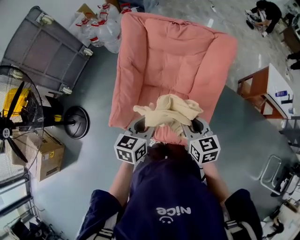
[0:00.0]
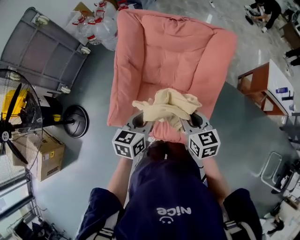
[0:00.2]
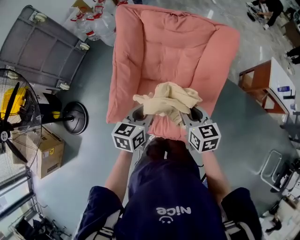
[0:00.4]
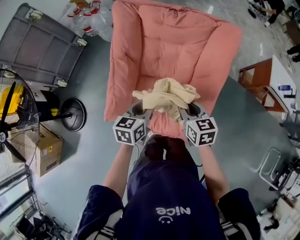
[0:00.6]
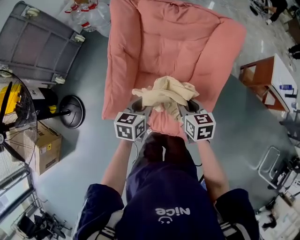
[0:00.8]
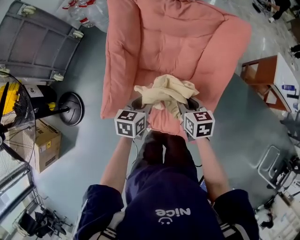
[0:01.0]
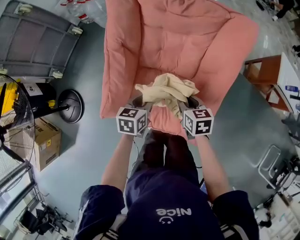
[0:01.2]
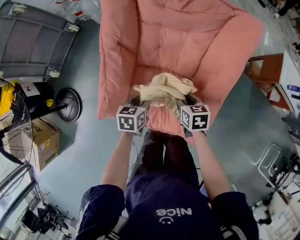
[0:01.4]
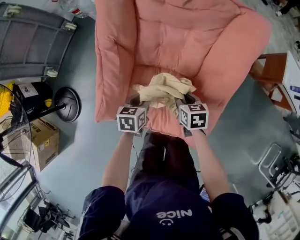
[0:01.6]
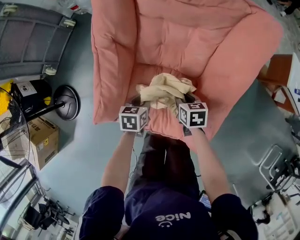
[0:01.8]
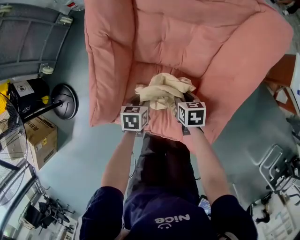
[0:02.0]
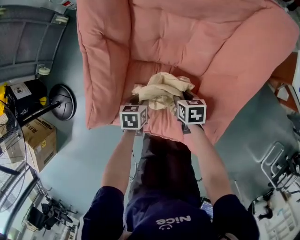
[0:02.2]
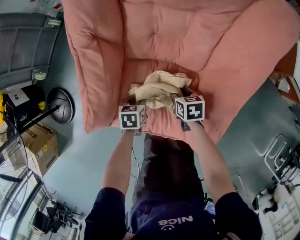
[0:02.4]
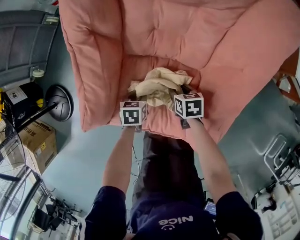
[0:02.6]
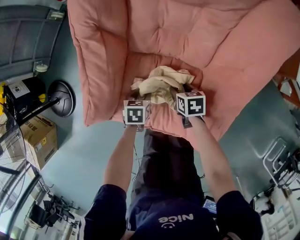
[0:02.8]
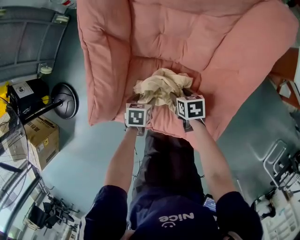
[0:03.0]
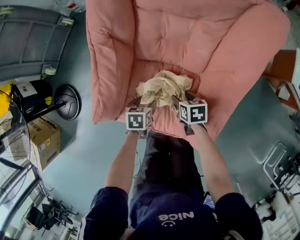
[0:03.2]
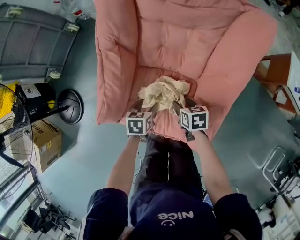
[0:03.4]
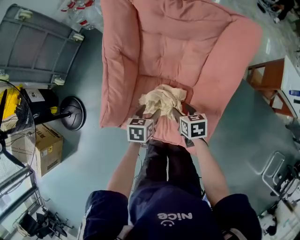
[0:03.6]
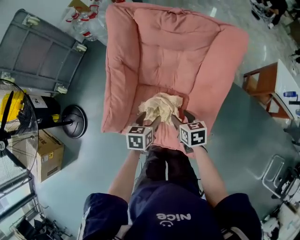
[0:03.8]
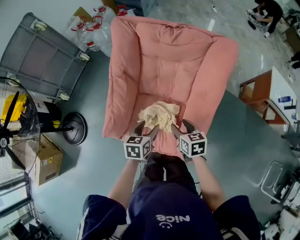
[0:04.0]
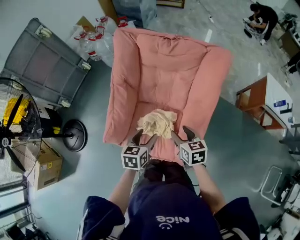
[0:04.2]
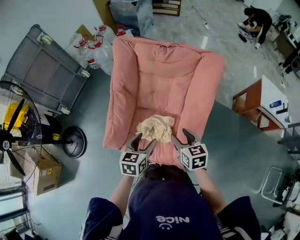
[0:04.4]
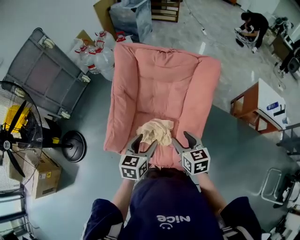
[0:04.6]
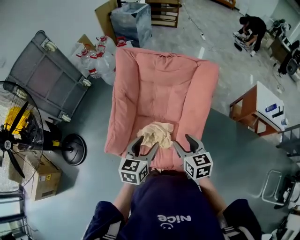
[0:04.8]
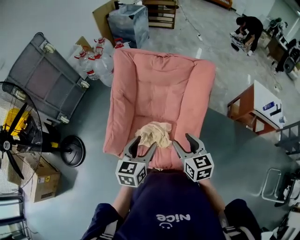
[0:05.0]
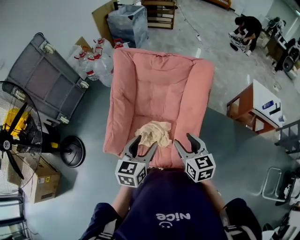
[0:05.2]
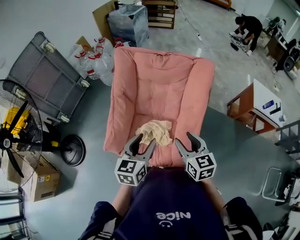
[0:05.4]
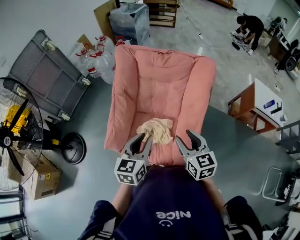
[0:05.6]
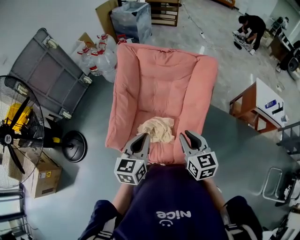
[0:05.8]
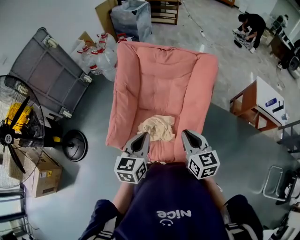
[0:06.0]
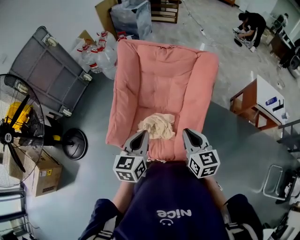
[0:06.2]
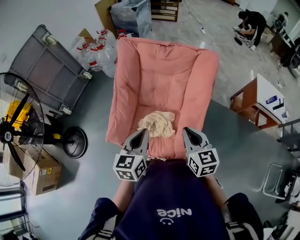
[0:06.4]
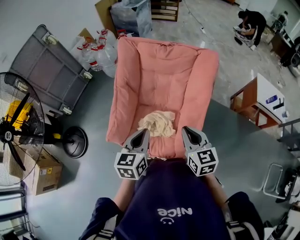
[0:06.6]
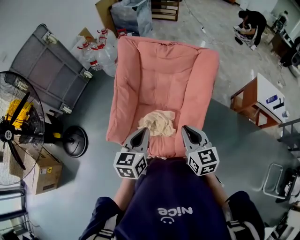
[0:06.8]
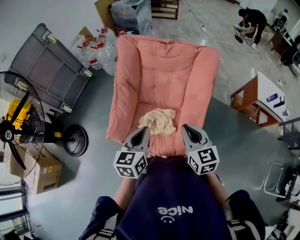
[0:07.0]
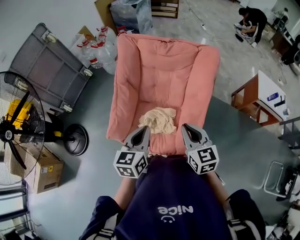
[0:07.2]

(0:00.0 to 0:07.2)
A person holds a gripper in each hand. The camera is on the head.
0:00.0 - 0:01.4: Both grippers move downward and forward, about 30 cm. The right gripper turns by roughly 20 degrees; the left gripper changes its angle by approximately 20 degrees.
0:01.4 - 0:02.8: Both grippers travel together downward, about 25 cm. The right gripper opens.
0:02.8 - 0:04.4: Both grippers travel together upward, some 40 cm. The right gripper turns by about 30 degrees. The left gripper points its fingers approximately 30 degrees further upward, and opens its fingers.
0:04.4 - 0:05.8: The grippers both shift upward and backward by about 15 cm. The right gripper closes up. The left gripper closes its fingers.
0:05.8 - 0:07.2: The grippers move only a little.

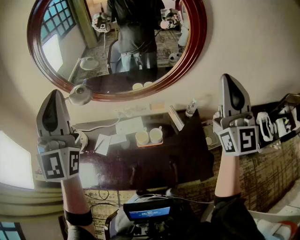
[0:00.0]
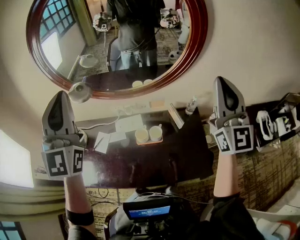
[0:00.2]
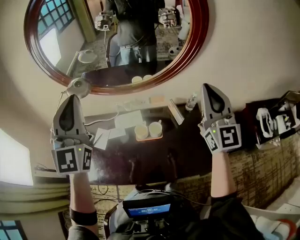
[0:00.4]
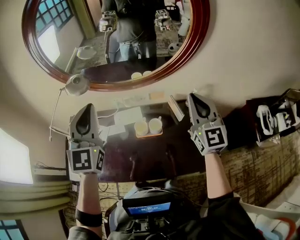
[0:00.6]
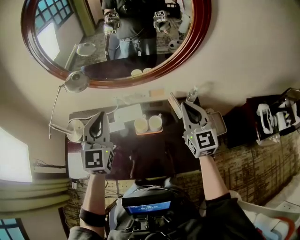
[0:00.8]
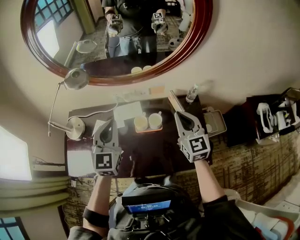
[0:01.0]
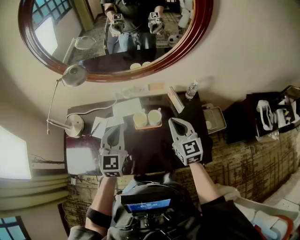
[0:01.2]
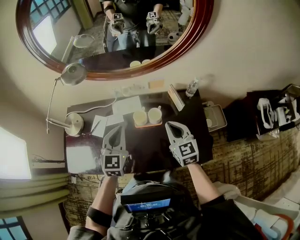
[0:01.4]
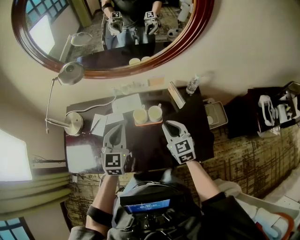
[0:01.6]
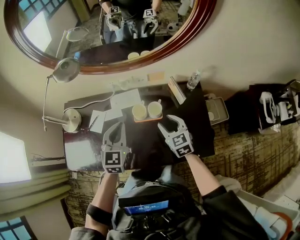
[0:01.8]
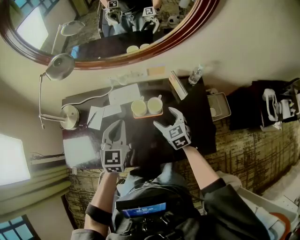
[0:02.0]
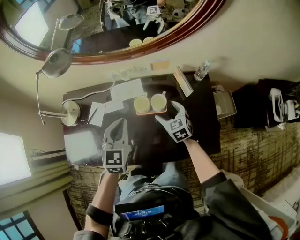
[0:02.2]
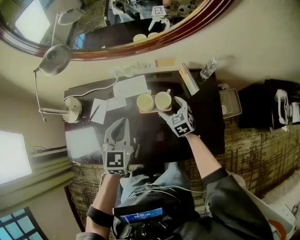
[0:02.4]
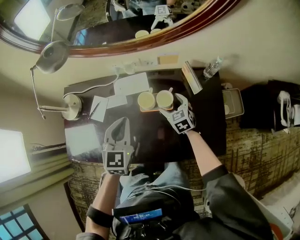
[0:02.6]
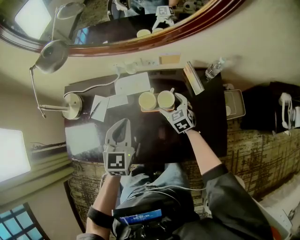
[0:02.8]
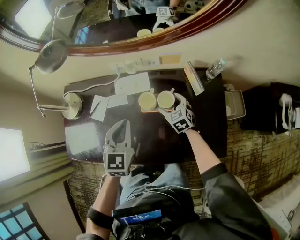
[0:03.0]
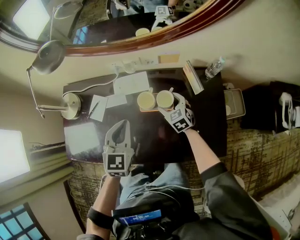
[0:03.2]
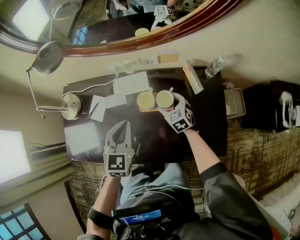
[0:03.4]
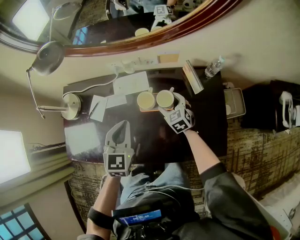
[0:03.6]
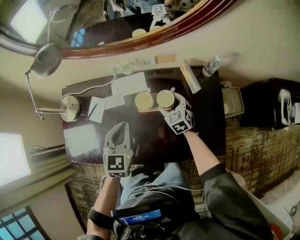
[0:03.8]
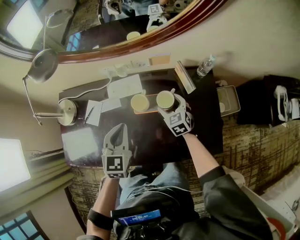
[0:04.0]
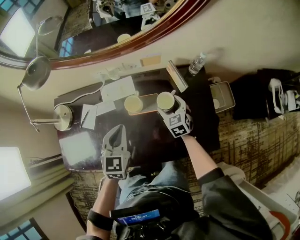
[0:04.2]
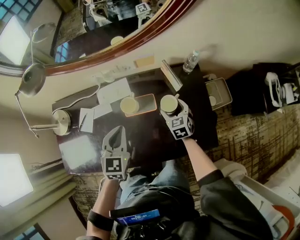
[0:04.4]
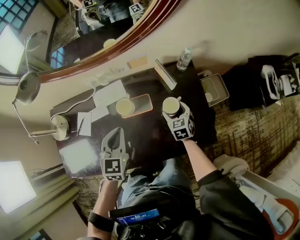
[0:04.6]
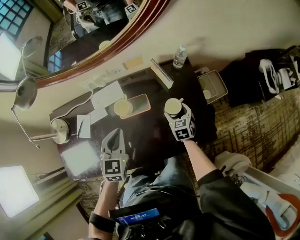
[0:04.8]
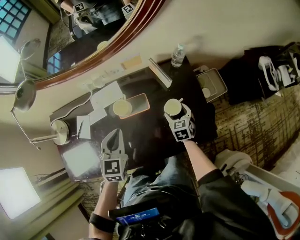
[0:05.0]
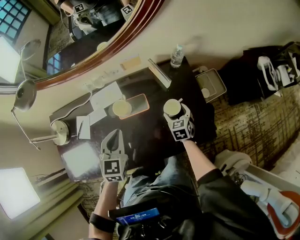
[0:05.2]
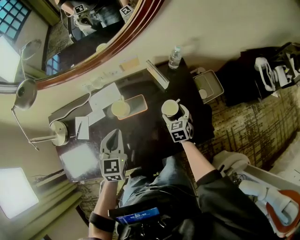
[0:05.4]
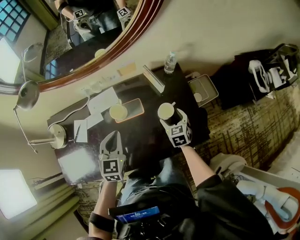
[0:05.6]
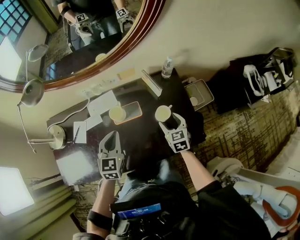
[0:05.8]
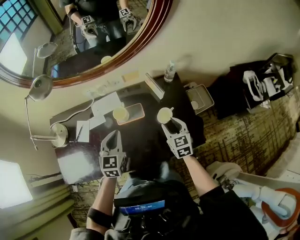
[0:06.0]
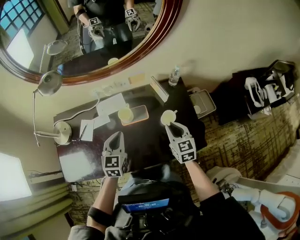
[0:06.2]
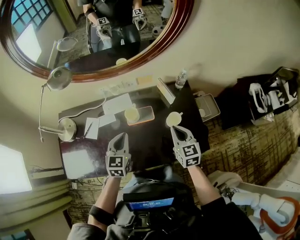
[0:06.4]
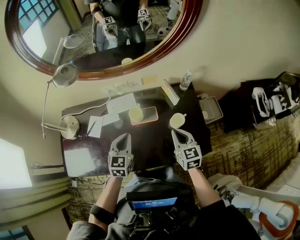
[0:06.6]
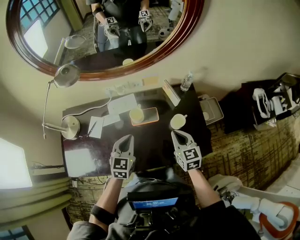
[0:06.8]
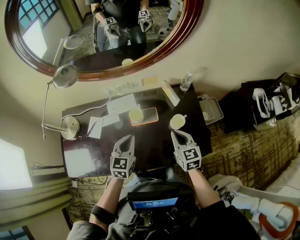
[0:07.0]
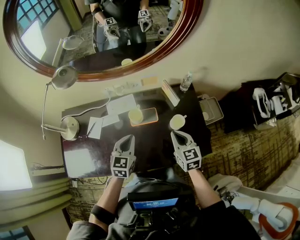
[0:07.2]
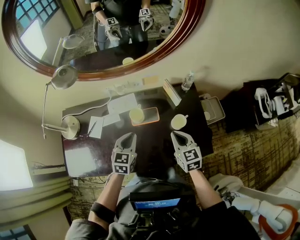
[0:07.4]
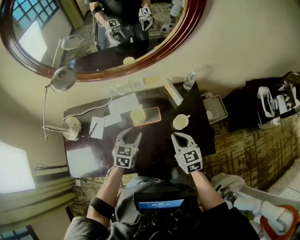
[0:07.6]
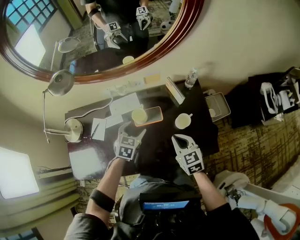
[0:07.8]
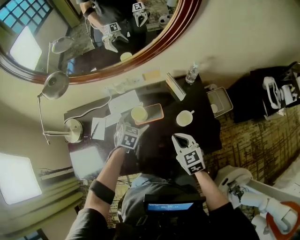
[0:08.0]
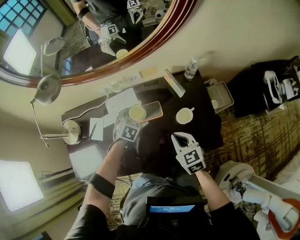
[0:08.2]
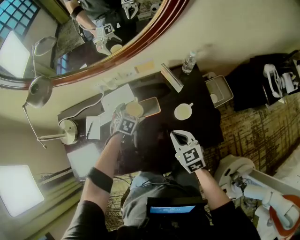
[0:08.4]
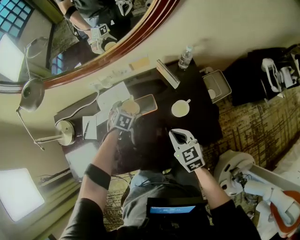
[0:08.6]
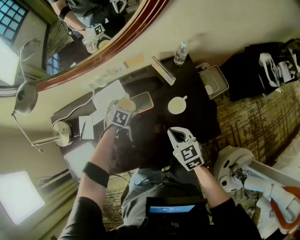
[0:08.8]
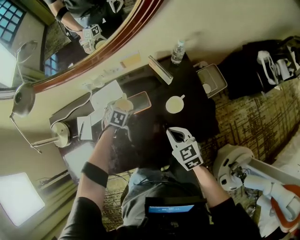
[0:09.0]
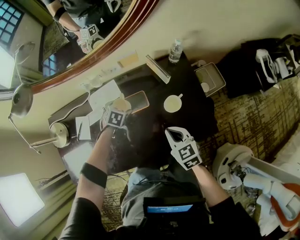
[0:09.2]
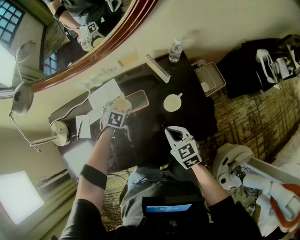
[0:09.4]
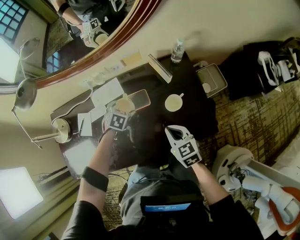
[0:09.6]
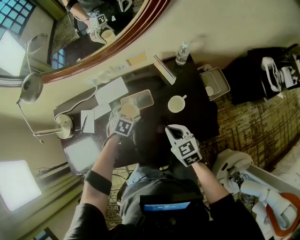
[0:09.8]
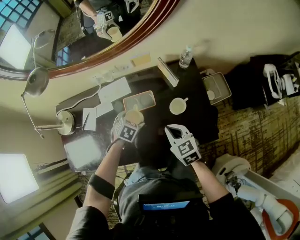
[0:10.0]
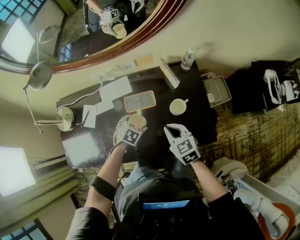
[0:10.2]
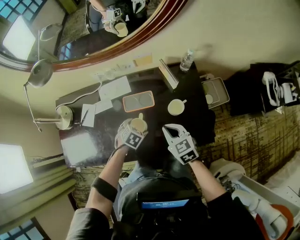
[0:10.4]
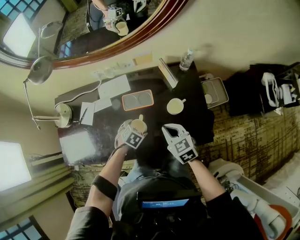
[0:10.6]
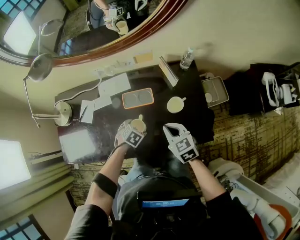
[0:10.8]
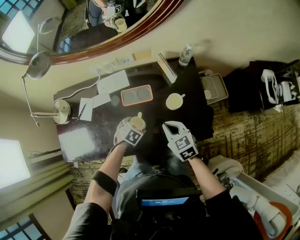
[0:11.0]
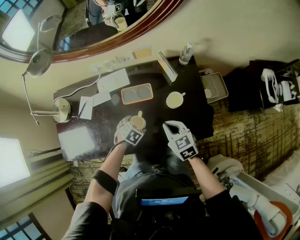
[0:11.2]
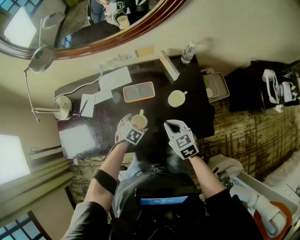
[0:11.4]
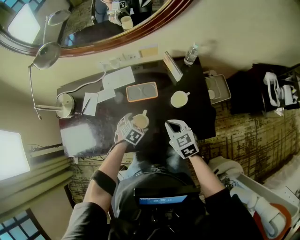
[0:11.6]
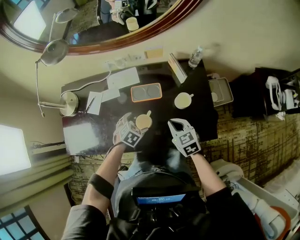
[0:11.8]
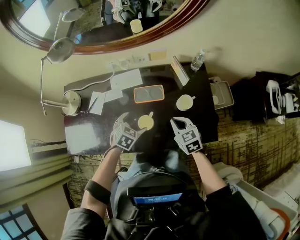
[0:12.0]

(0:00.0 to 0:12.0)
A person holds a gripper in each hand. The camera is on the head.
0:00.0 - 0:01.6: The two grippers go roughly 40 cm downward. The right gripper angles its fingers downward, by some 50 degrees, while the left gripper tilts its fingers about 40 degrees downward.
0:01.6 - 0:03.0: The left gripper is displaced downward by roughly 5 cm, while the right gripper heads downward and forward, covering about 25 cm, and opens its fingers.
0:03.0 - 0:04.4: The right gripper moves to the right and backward, approximately 10 cm, and changes its angle by approximately 20 degrees.
0:04.4 - 0:06.0: The right gripper goes roughly 15 cm upward and backward, and closes its fingers.
0:06.0 - 0:07.6: The right gripper moves to the left, approximately 5 cm, and closes its fingers. The left gripper moves downward, some 5 cm.
0:07.6 - 0:09.0: The left gripper moves downward and forward, roughly 20 cm, tips its fingers downward by approximately 30 degrees, and opens up; the right gripper shifts some 10 cm downward.
0:09.0 - 0:10.4: The left gripper goes some 15 cm backward.
0:10.4 - 0:12.0: The left gripper travels upward by about 5 cm.

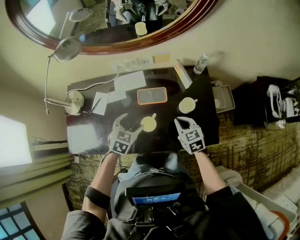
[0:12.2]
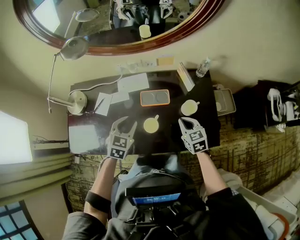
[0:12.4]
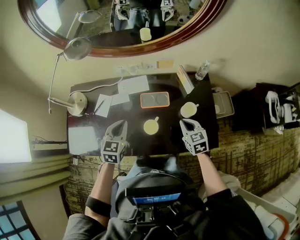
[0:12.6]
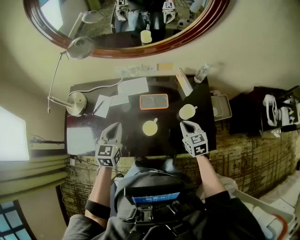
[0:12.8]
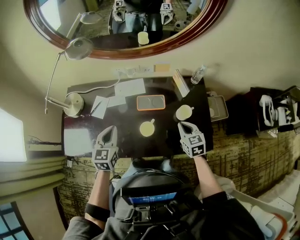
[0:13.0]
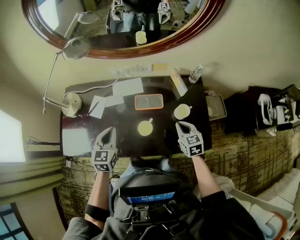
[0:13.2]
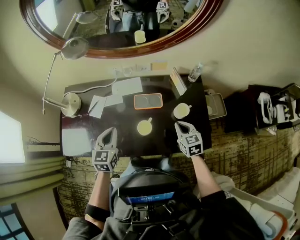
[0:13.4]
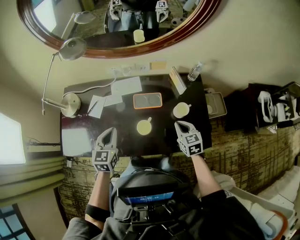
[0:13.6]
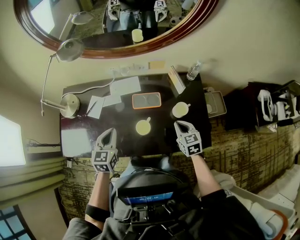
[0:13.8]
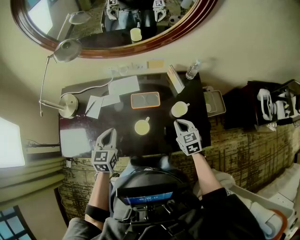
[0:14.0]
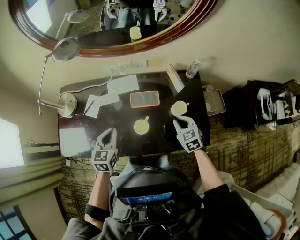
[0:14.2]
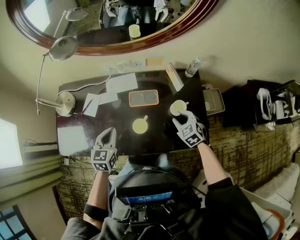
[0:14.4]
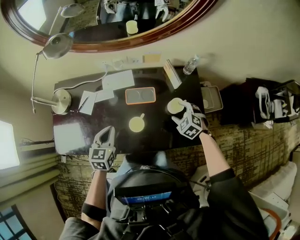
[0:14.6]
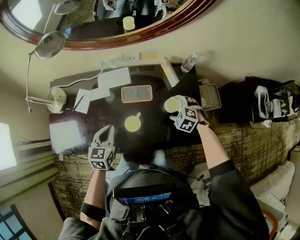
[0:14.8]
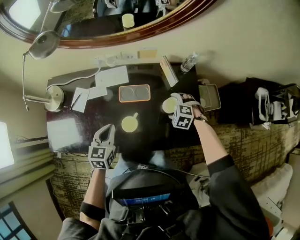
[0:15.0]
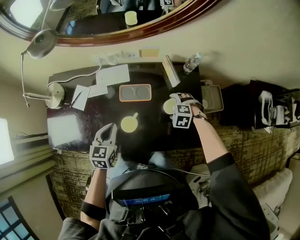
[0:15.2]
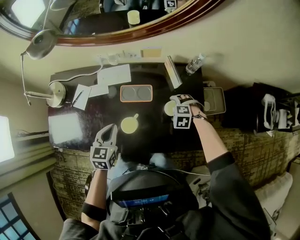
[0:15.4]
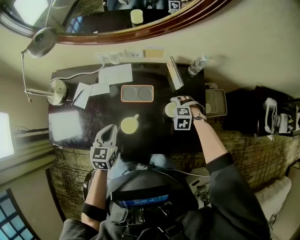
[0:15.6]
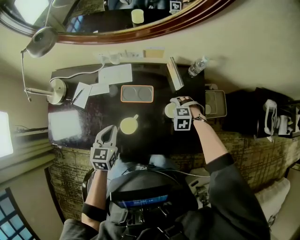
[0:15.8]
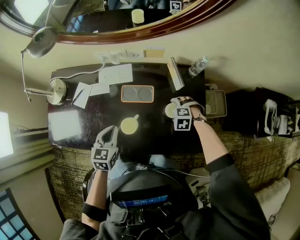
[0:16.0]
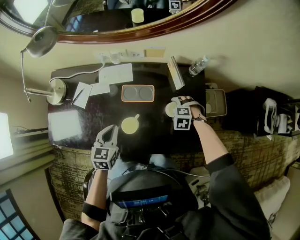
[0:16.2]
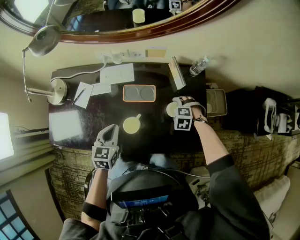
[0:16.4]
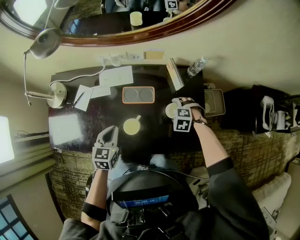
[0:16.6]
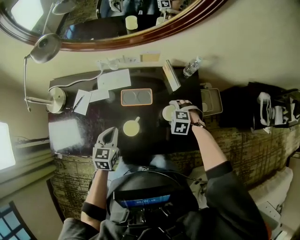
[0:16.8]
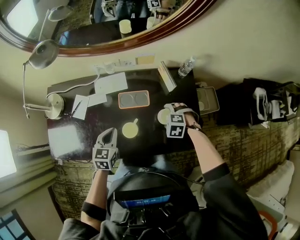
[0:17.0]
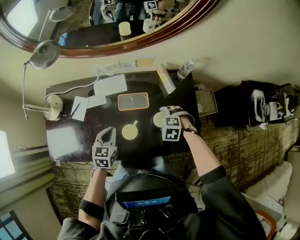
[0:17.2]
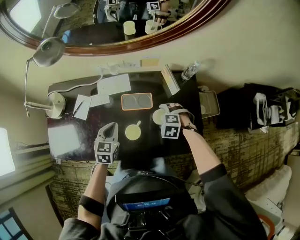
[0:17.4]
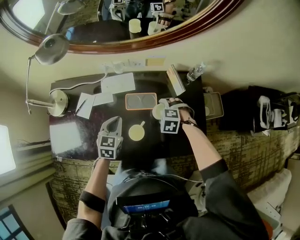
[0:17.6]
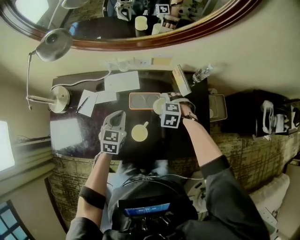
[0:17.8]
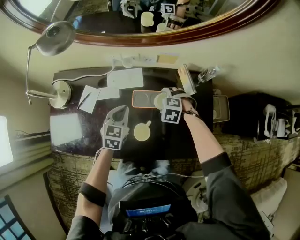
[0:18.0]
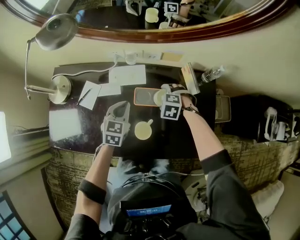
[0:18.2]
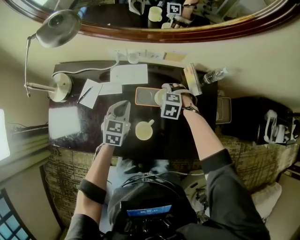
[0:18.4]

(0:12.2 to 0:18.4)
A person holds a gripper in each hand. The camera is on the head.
0:12.2 - 0:13.8: The left gripper goes about 10 cm to the left and upward, turns by about 30 degrees, and closes its fingers.
0:13.8 - 0:15.4: The right gripper moves downward, about 15 cm, rolls counterclockwise, seen from behind, by some 60 degrees, and opens. Meanwhile the left gripper moves roughly 10 cm.
0:15.4 - 0:16.8: The grippers make only small movements.
0:16.8 - 0:18.4: The right gripper shifts by approximately 15 cm. Meanwhile the left gripper changes place by some 15 cm.
